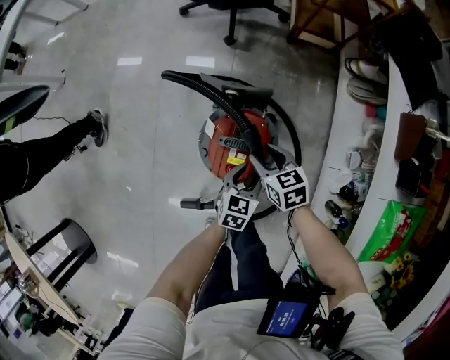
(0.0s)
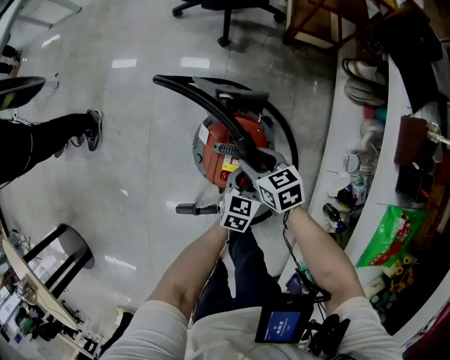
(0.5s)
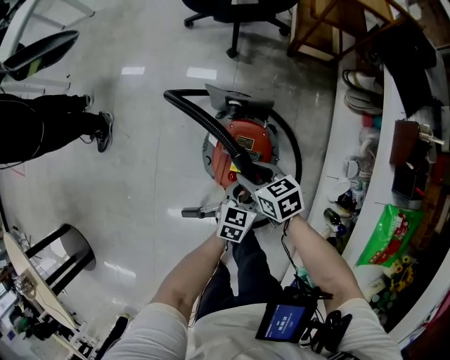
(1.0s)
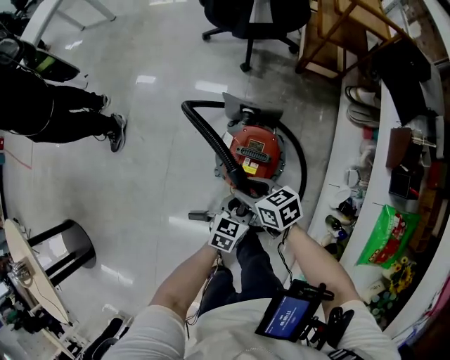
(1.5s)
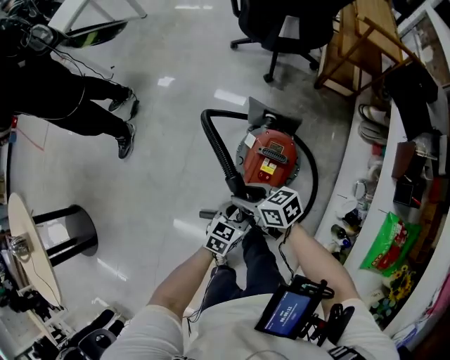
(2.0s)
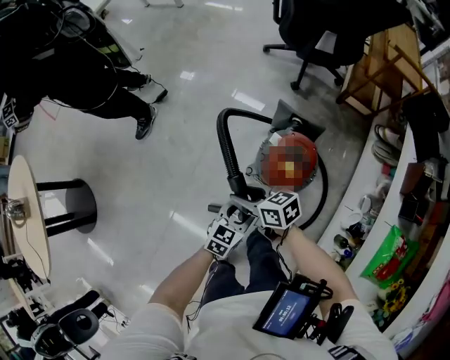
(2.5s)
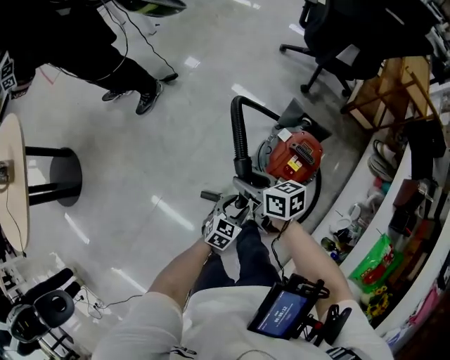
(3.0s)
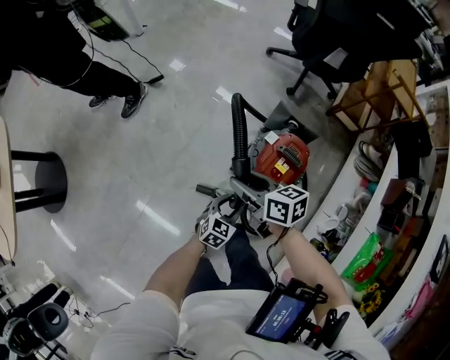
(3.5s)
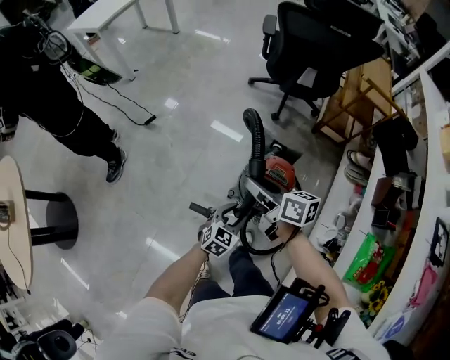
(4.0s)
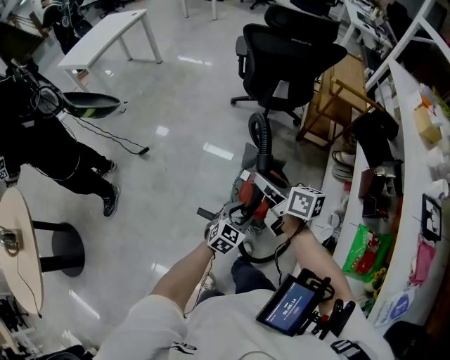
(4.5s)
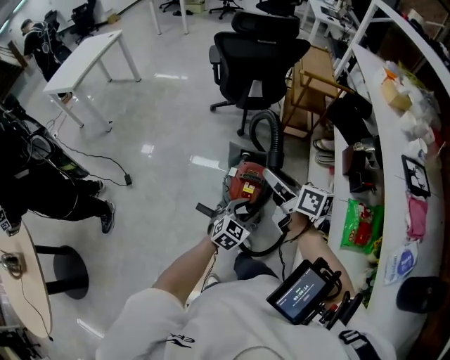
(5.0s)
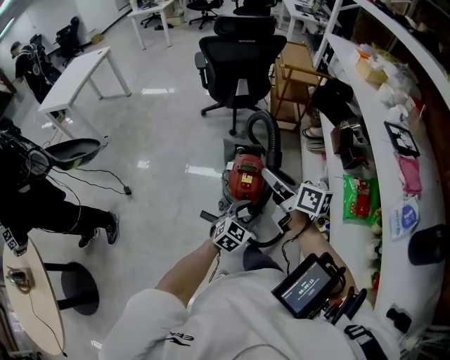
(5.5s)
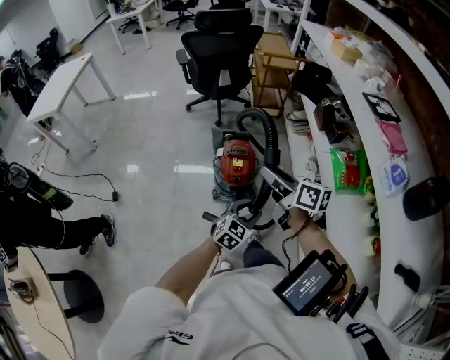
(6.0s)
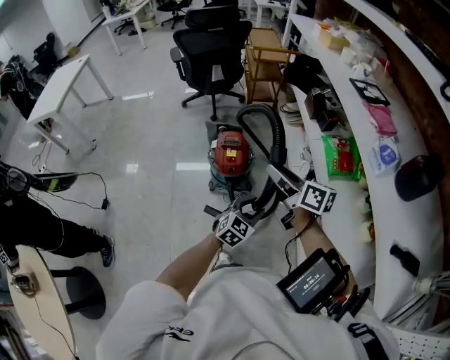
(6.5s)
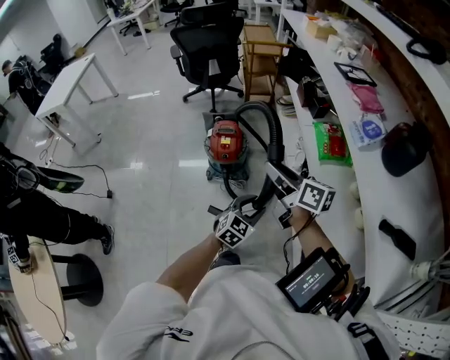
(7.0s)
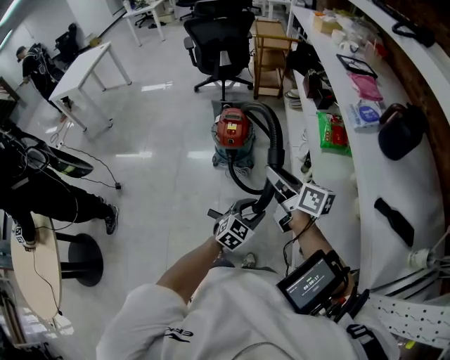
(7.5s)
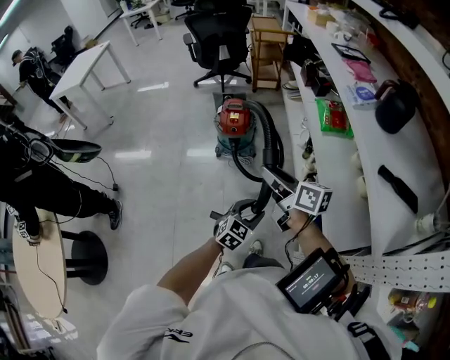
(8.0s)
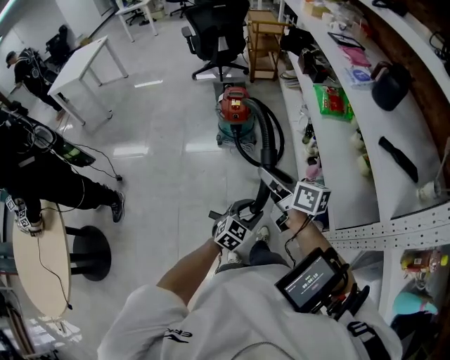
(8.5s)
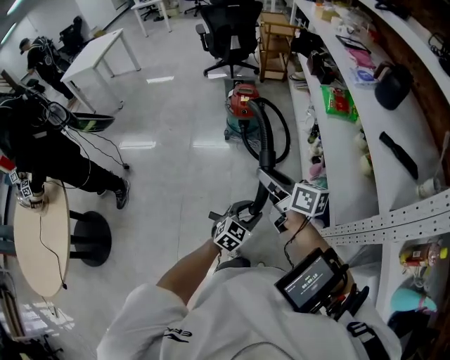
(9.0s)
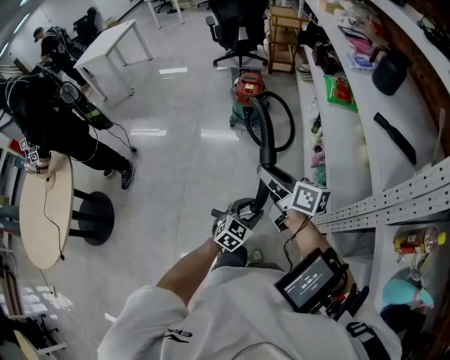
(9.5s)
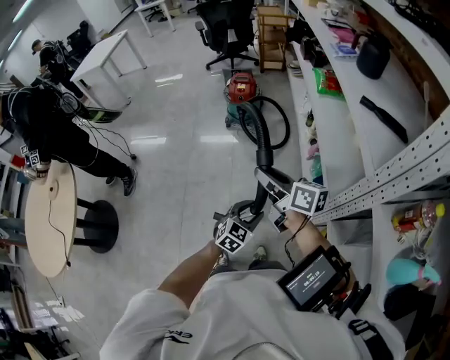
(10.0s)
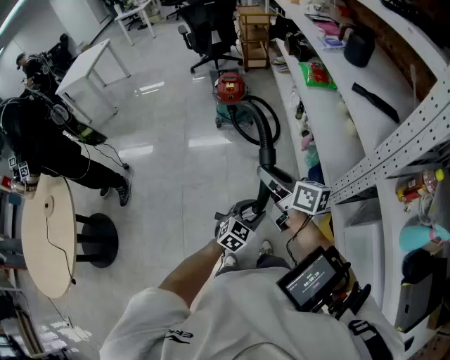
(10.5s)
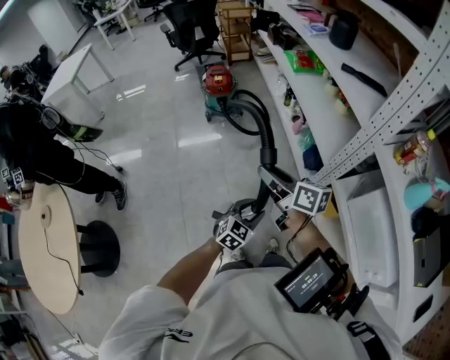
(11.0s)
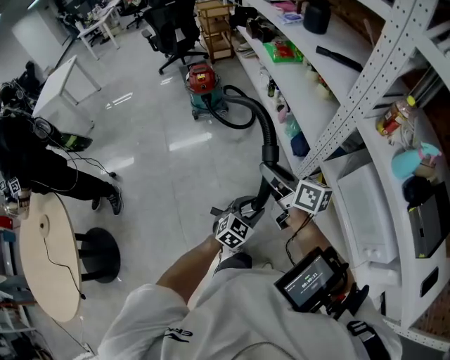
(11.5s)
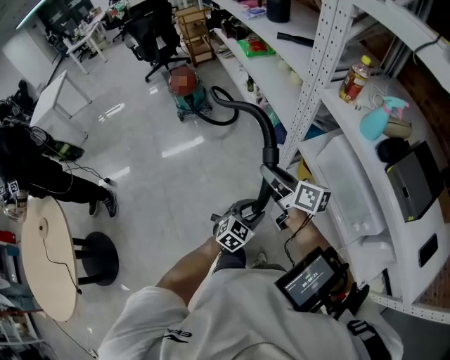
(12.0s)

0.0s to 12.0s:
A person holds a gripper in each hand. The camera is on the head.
0.0s to 2.0s: The grippers both shift to the left, upward and backward by some 25 cm. The right gripper swivels approximately 30 degrees.
2.0s to 4.0s: The left gripper shifts about 10 cm to the left and upward. The right gripper shifts roughly 15 cm upward, and swivels about 20 degrees.
4.0s to 6.0s: The right gripper ends up about 30 cm from where it was, and swivels roughly 30 degrees. The left gripper ends up roughly 30 cm from where it was, and turns by roughly 30 degrees.
6.0s to 8.0s: The grippers both shift backward by approximately 35 cm.
8.0s to 10.0s: Both grippers move backward, approximately 30 cm.
10.0s to 12.0s: The right gripper changes place by approximately 30 cm, and changes its angle by roughly 30 degrees; the left gripper moves some 30 cm, and changes its angle by approximately 30 degrees.

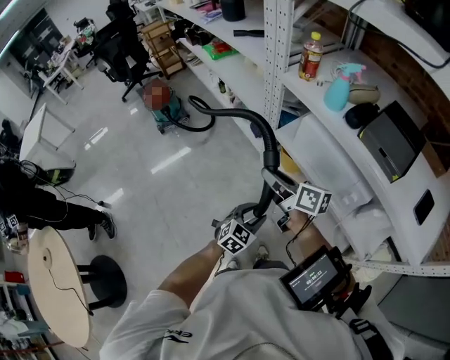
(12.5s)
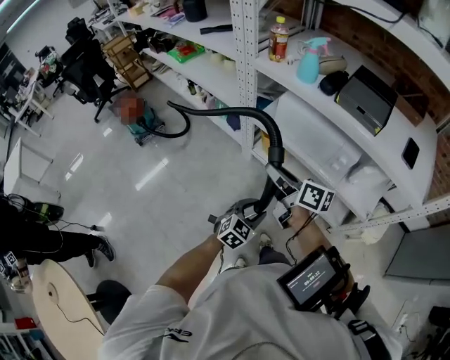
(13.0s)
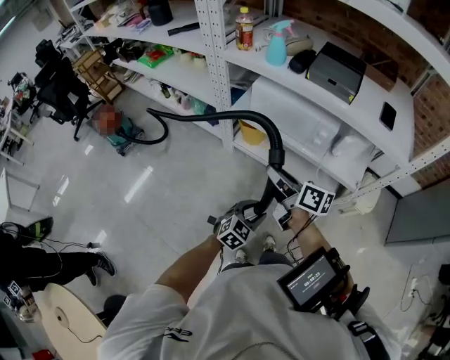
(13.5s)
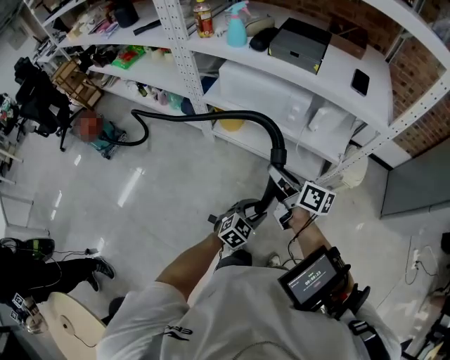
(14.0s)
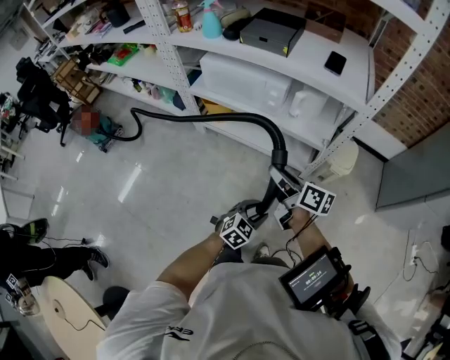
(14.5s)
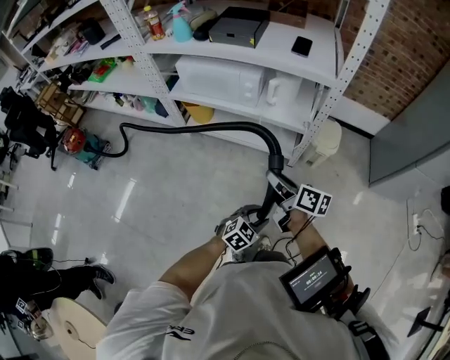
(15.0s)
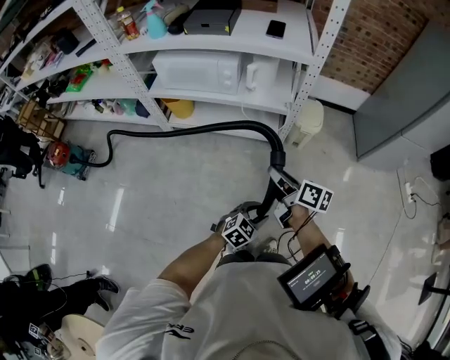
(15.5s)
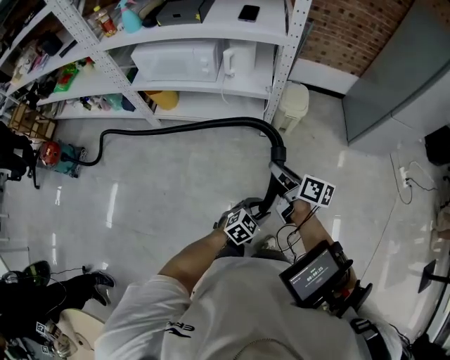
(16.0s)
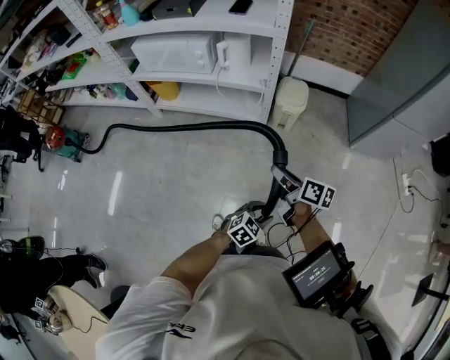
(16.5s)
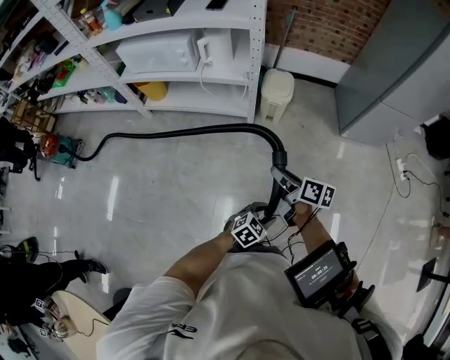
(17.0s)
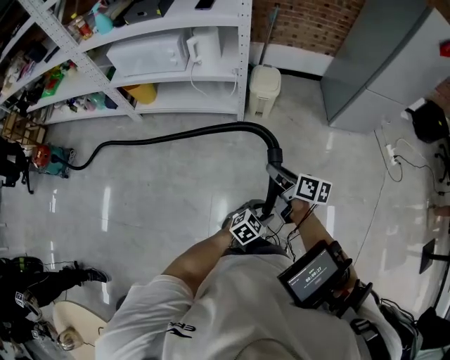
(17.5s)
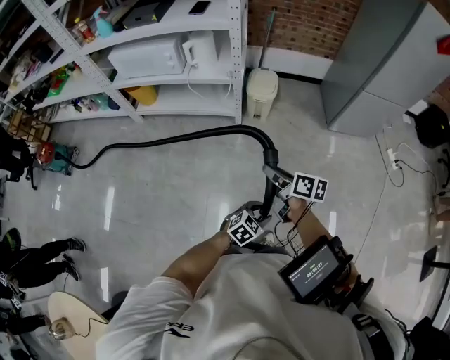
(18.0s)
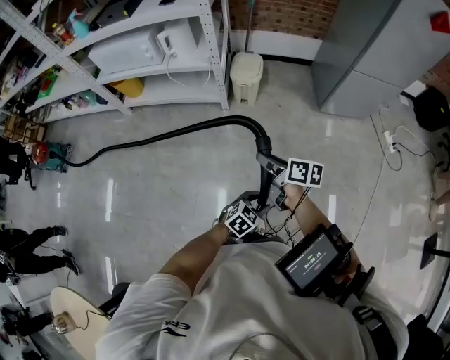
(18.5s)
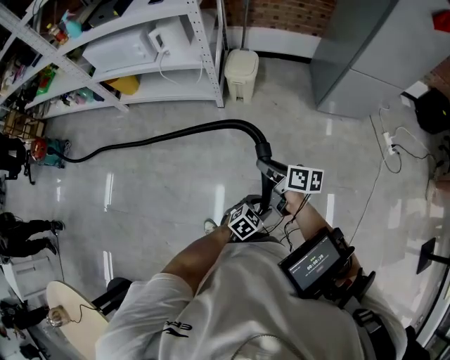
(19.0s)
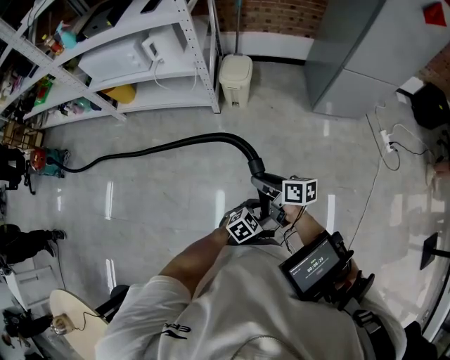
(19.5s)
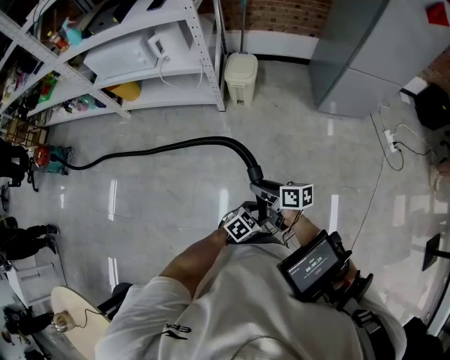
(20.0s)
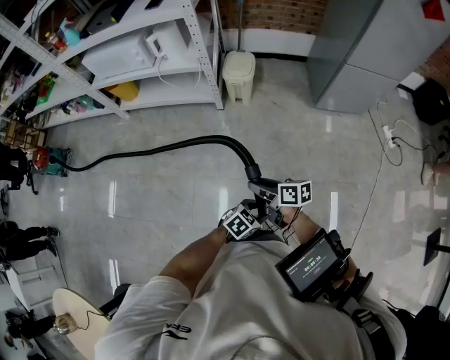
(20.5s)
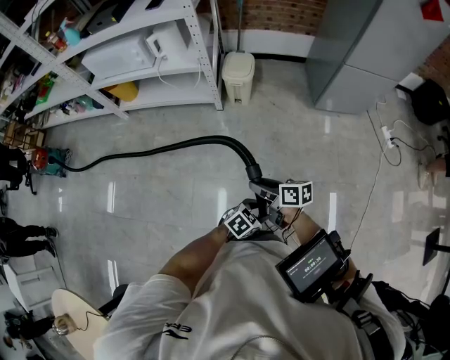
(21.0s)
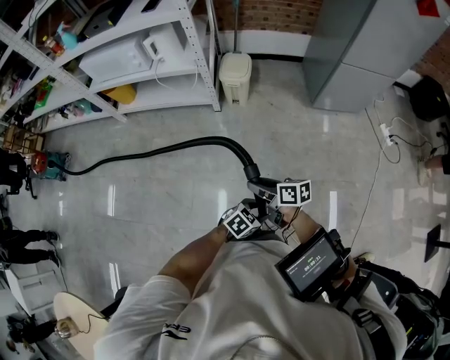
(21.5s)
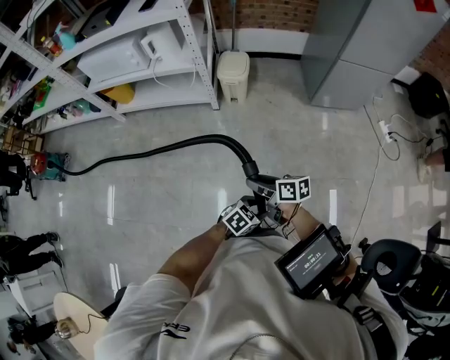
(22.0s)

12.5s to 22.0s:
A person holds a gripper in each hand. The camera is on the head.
12.5s to 14.5s: The left gripper changes place by approximately 40 cm, and changes its angle by roughly 40 degrees. Meanwhile the right gripper shifts by approximately 40 cm, and swivels about 40 degrees.
14.5s to 16.5s: The two grippers go approximately 35 cm to the right and backward. The left gripper swivels some 20 degrees.
16.5s to 18.0s: The two grippers go approximately 15 cm to the right and backward.
18.0s to 20.0s: The right gripper changes place by approximately 15 cm. Meanwhile the left gripper moves approximately 15 cm.
20.0s to 22.0s: The grippers make only small movements.

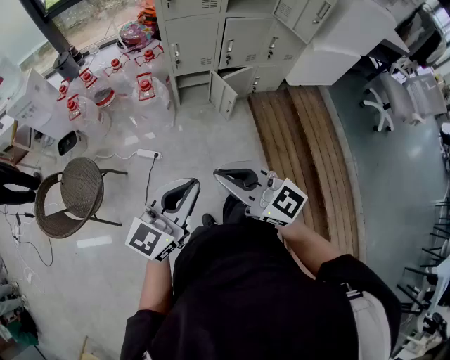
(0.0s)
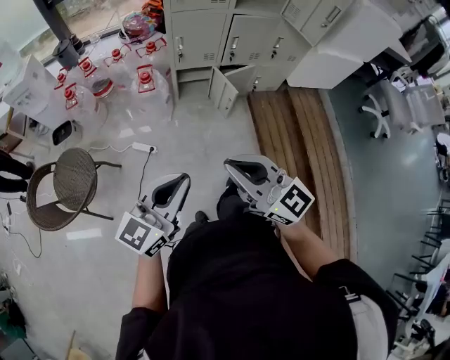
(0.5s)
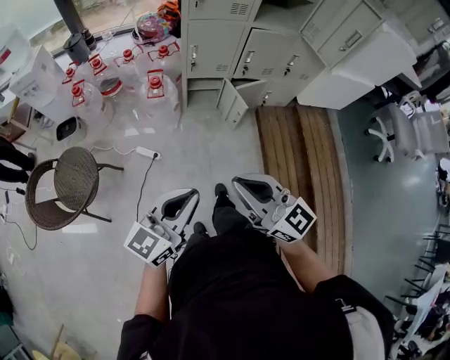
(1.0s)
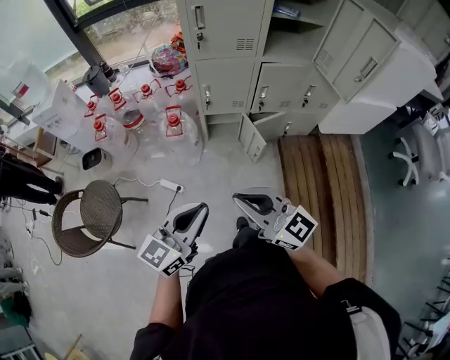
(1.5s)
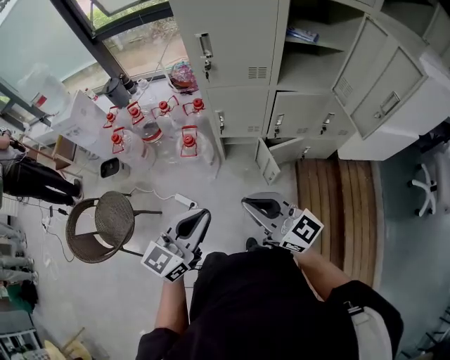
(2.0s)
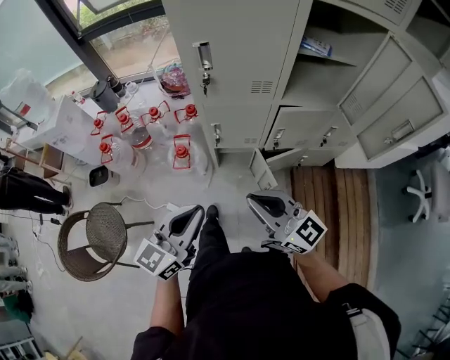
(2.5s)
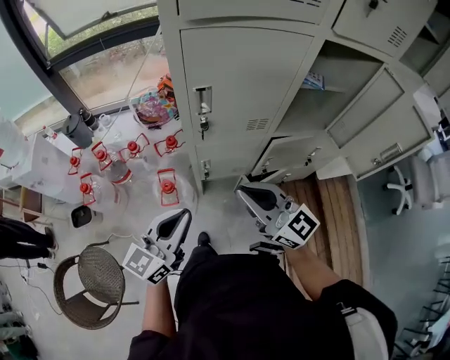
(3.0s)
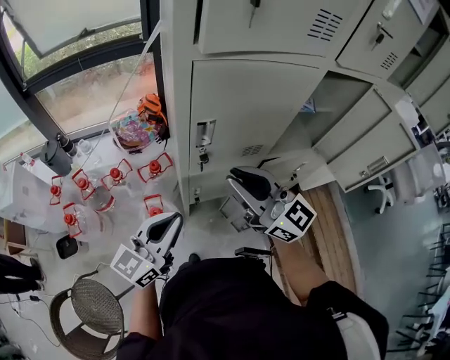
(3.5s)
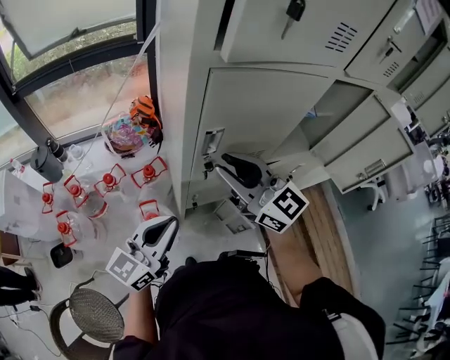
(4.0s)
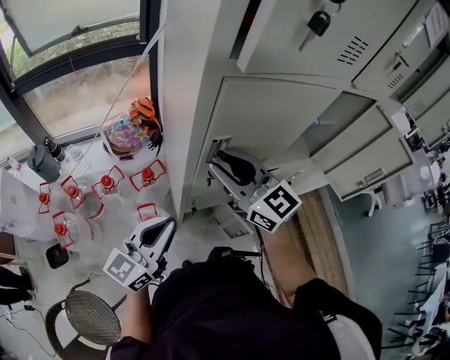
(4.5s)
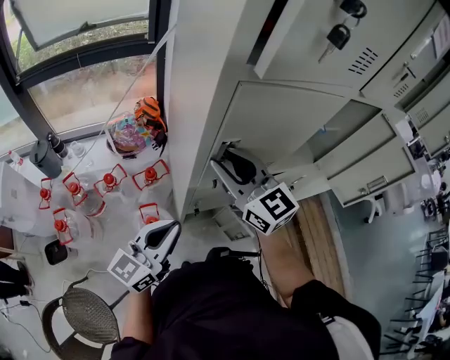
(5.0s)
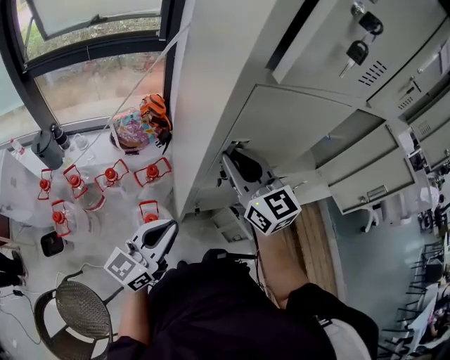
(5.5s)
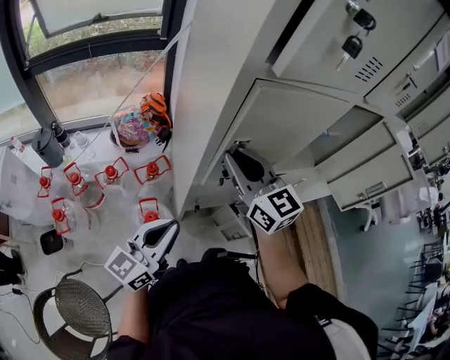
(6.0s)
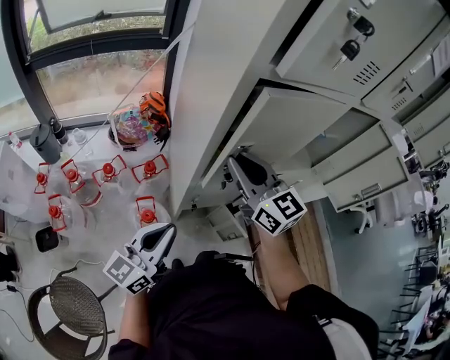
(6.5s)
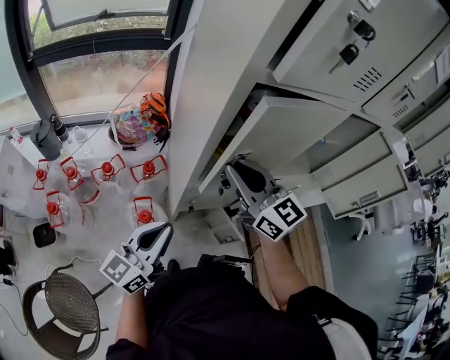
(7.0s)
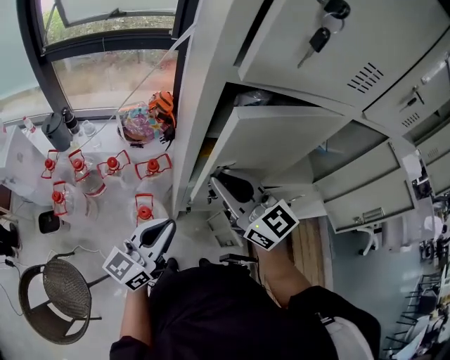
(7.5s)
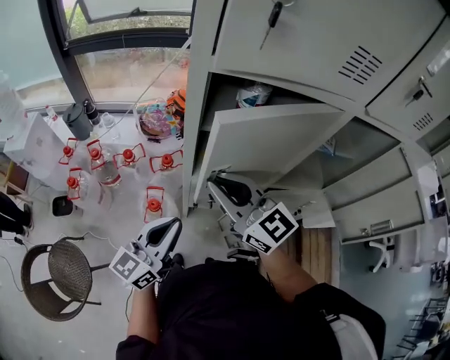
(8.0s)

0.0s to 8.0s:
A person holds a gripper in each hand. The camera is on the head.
0.0s to 2.0s: The two grippers go about 30 cm forward.
2.0s to 4.0s: The two grippers go roughly 40 cm forward. The right gripper rotates some 30 degrees, and opens; the left gripper changes its angle by roughly 20 degrees.
4.0s to 6.0s: The right gripper shifts by about 5 cm.
6.0s to 8.0s: The left gripper goes some 10 cm to the right. The right gripper is displaced backward by roughly 5 cm, and rotates approximately 30 degrees.
